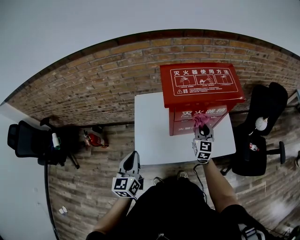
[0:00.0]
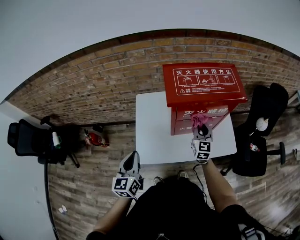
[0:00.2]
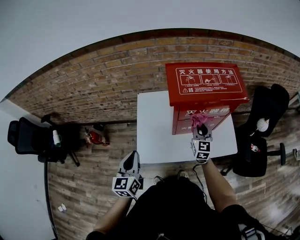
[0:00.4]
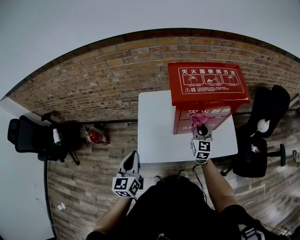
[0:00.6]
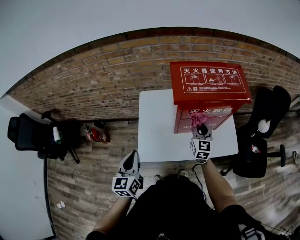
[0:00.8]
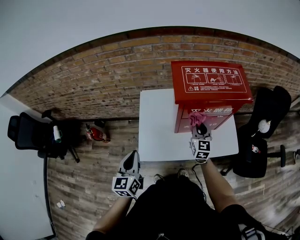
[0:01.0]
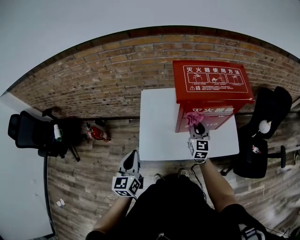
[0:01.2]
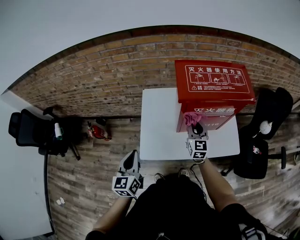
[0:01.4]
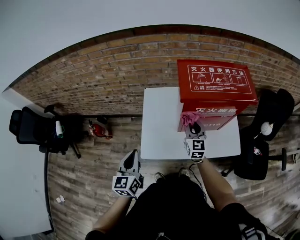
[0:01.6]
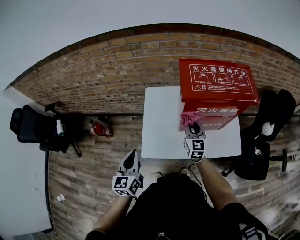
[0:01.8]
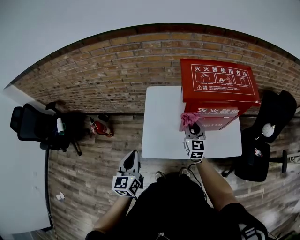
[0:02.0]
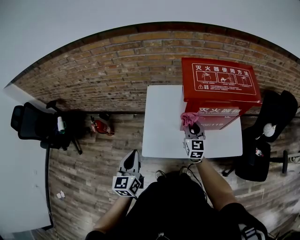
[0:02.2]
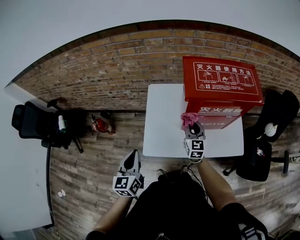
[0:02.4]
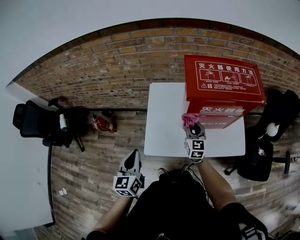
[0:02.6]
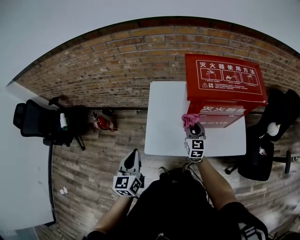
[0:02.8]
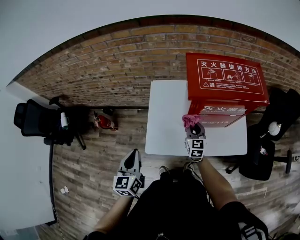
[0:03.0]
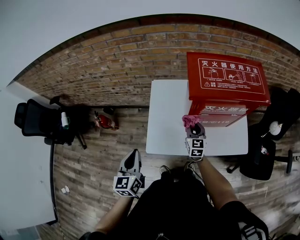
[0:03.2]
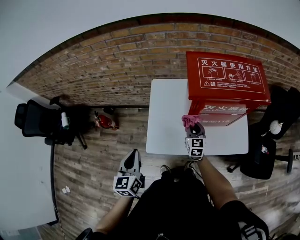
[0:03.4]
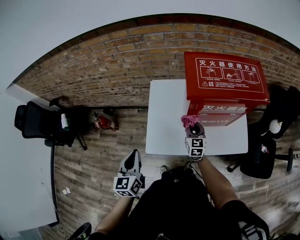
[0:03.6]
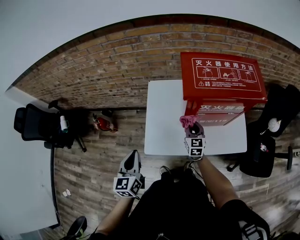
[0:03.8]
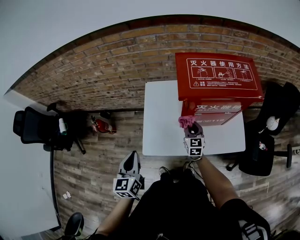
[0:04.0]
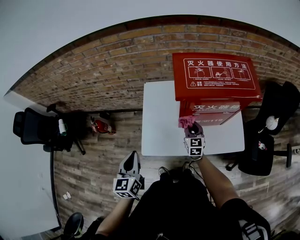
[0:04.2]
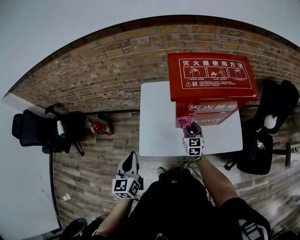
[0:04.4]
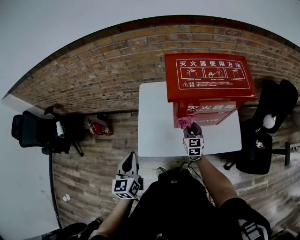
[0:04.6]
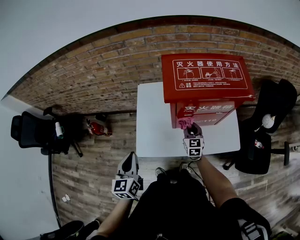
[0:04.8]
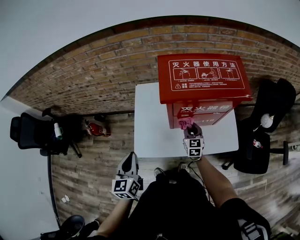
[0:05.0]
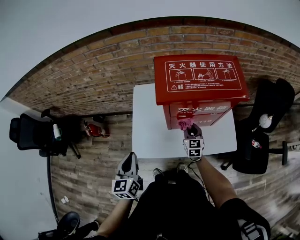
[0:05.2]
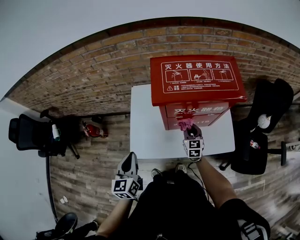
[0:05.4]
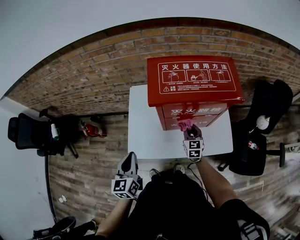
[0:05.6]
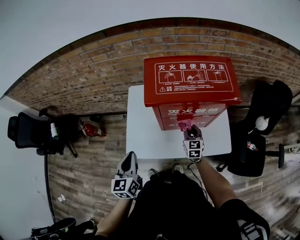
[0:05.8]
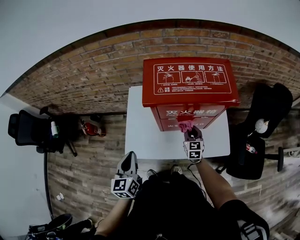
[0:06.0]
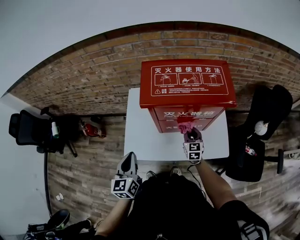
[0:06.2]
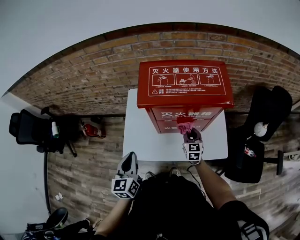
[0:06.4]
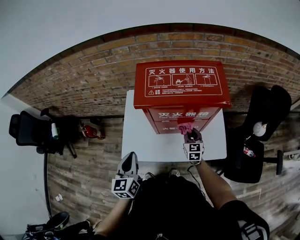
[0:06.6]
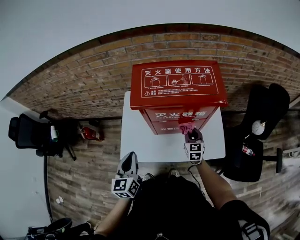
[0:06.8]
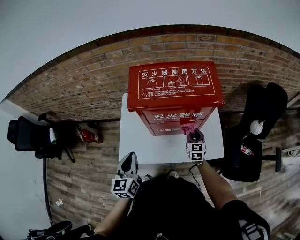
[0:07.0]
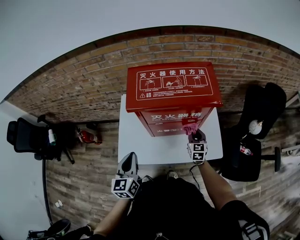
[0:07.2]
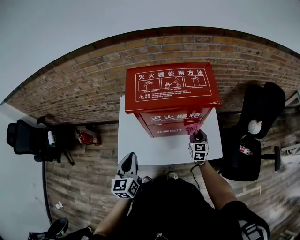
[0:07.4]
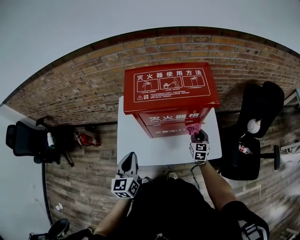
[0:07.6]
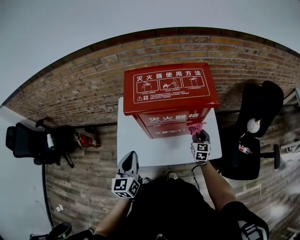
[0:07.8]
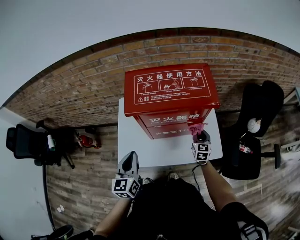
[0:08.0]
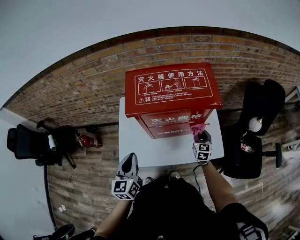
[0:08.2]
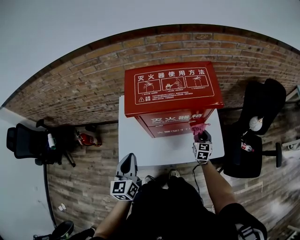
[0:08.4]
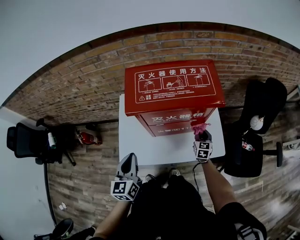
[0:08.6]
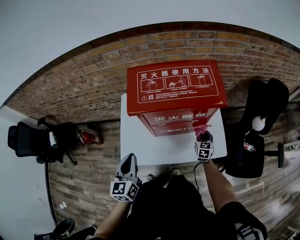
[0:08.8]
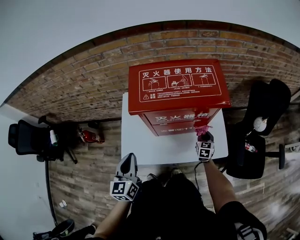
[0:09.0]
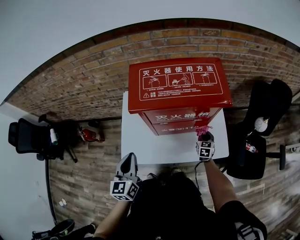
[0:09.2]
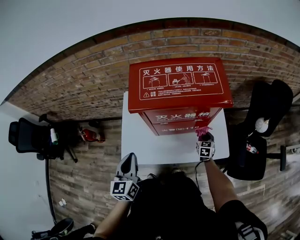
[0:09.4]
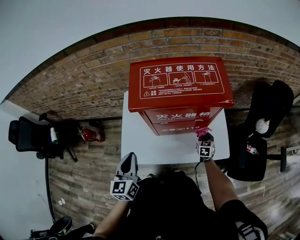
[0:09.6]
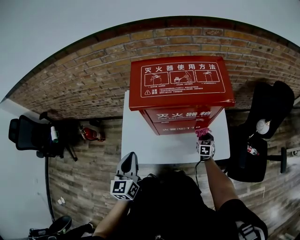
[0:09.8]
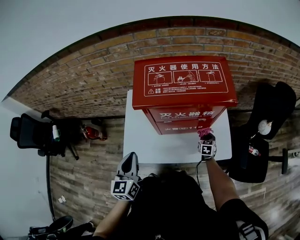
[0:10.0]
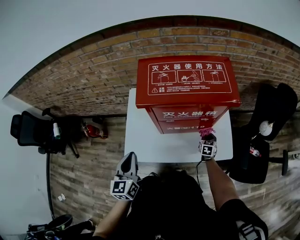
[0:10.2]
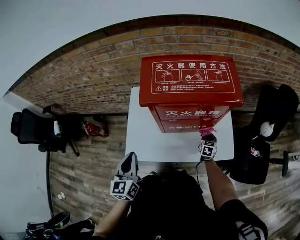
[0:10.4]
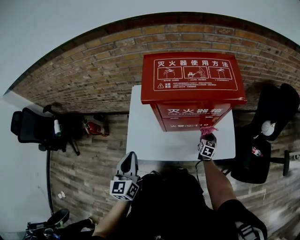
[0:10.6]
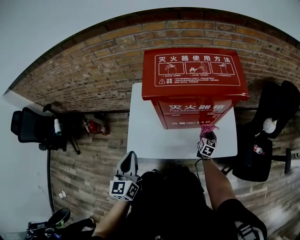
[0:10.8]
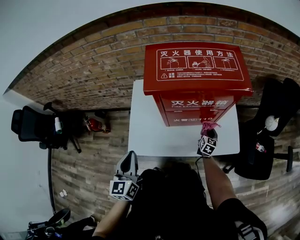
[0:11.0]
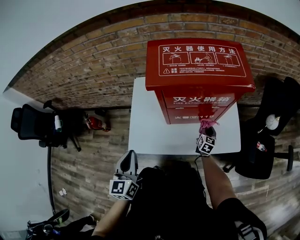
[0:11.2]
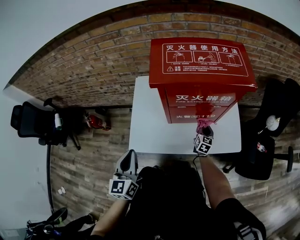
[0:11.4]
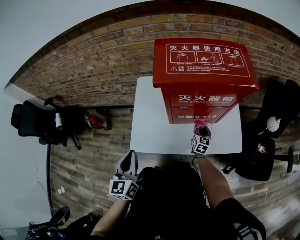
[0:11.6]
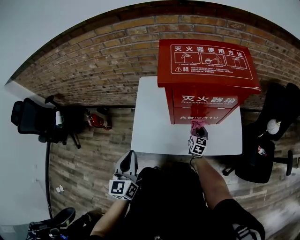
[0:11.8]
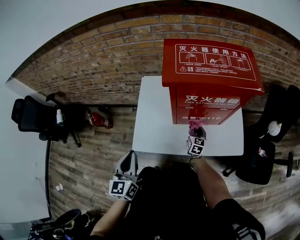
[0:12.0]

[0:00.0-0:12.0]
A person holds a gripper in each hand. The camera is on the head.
0:00.0 to 0:01.6: The left gripper shifts by some 5 cm, while the right gripper shifts roughly 10 cm to the left.
0:01.6 to 0:03.0: The right gripper goes roughly 10 cm downward.
0:03.0 to 0:04.4: There are only small adjustments of the grippers.
0:04.4 to 0:06.0: Both grippers travel together to the right, roughly 10 cm.
0:06.0 to 0:07.6: The right gripper moves to the right, roughly 15 cm. Meanwhile the left gripper moves to the right, approximately 5 cm.
0:07.6 to 0:09.0: The right gripper heads downward, covering about 10 cm.
0:09.0 to 0:10.4: The right gripper is displaced downward by some 5 cm.
0:10.4 to 0:12.0: The right gripper goes about 15 cm to the left. Meanwhile the left gripper heads backward and to the left, covering about 10 cm.

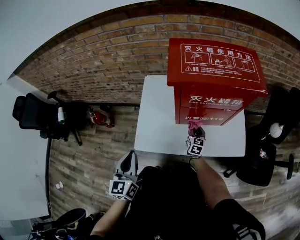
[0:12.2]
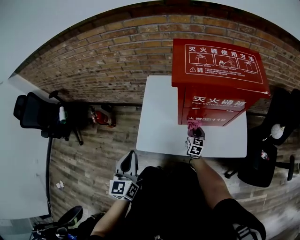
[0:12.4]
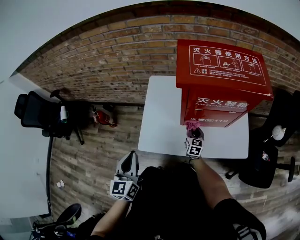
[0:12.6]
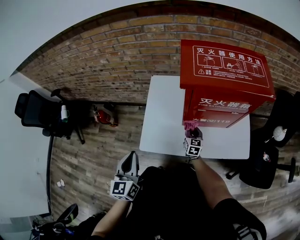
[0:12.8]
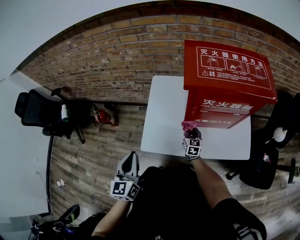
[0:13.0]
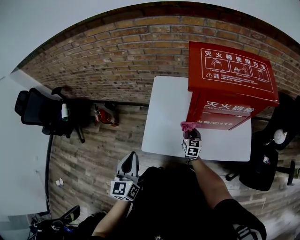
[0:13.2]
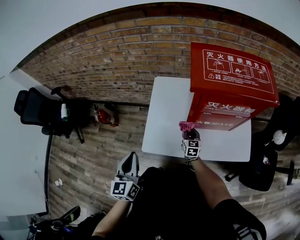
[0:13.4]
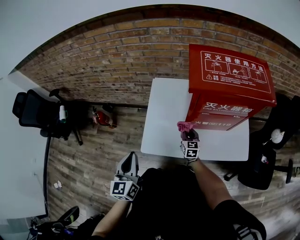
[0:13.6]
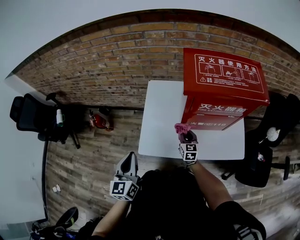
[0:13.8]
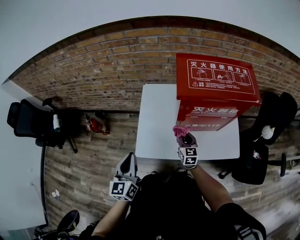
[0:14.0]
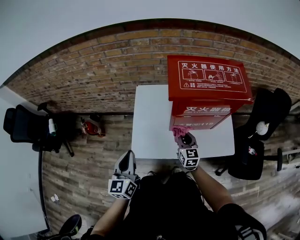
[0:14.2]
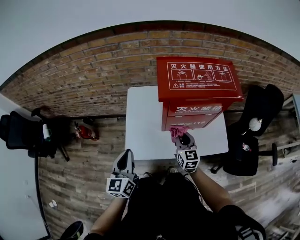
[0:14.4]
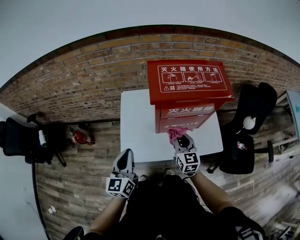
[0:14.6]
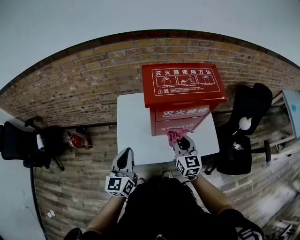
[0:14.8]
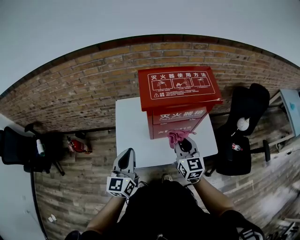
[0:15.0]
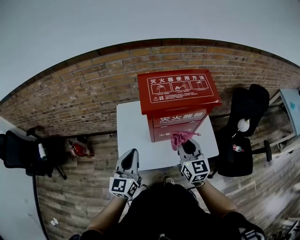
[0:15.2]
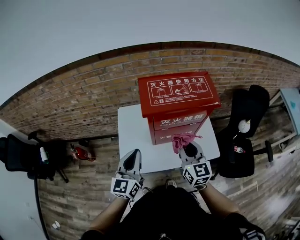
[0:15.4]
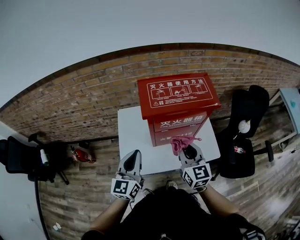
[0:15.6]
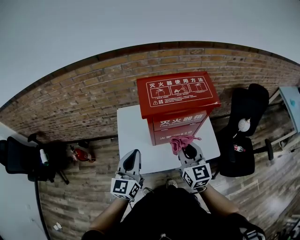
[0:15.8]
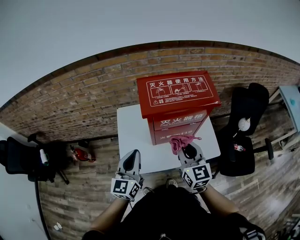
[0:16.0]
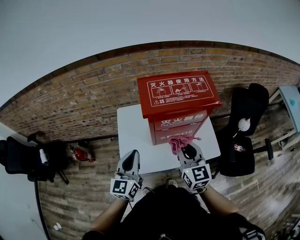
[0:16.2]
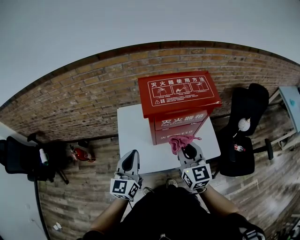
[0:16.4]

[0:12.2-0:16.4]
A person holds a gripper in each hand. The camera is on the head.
0:12.2 to 0:13.6: The right gripper moves to the left, approximately 10 cm; the left gripper shifts approximately 5 cm to the left.
0:13.6 to 0:15.0: The left gripper goes about 15 cm to the right, upward and forward, and swivels about 20 degrees. The right gripper goes roughly 30 cm upward.
0:15.0 to 0:16.4: The right gripper moves upward, about 5 cm.

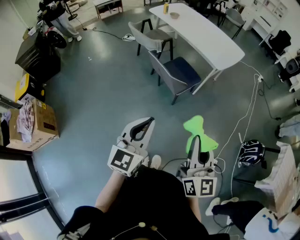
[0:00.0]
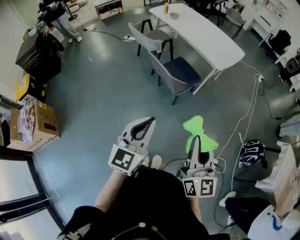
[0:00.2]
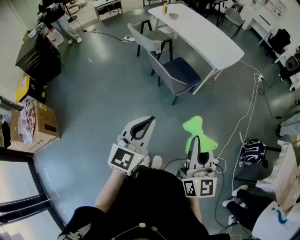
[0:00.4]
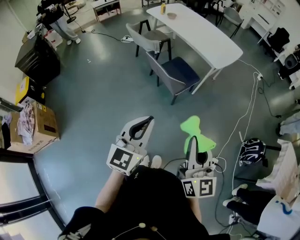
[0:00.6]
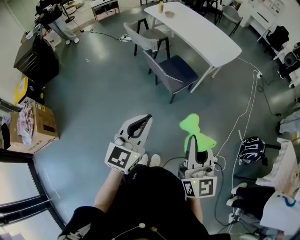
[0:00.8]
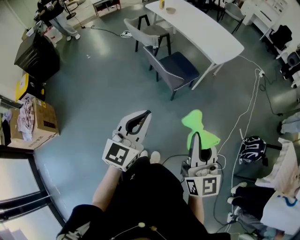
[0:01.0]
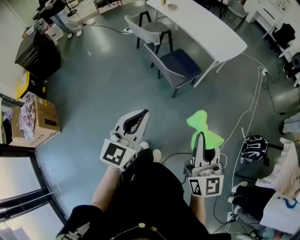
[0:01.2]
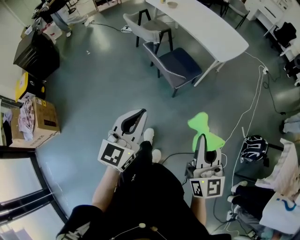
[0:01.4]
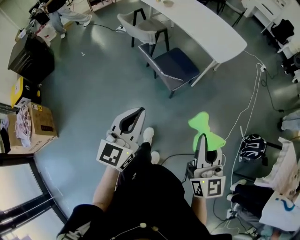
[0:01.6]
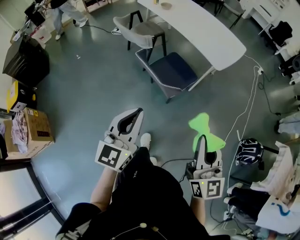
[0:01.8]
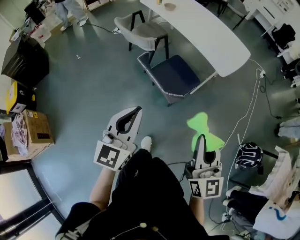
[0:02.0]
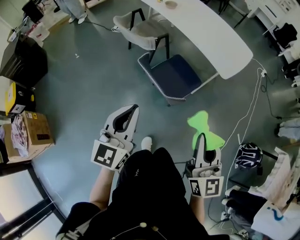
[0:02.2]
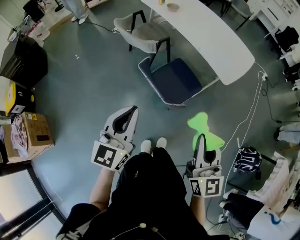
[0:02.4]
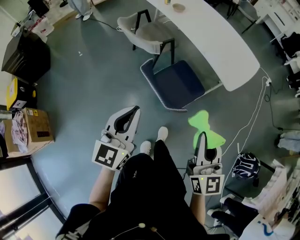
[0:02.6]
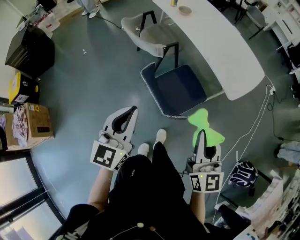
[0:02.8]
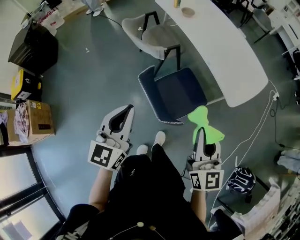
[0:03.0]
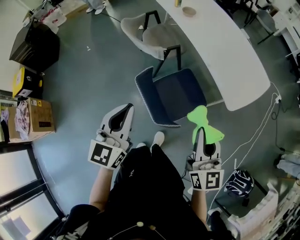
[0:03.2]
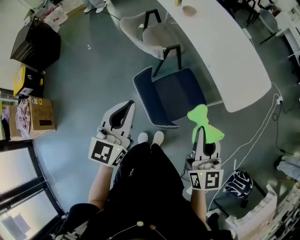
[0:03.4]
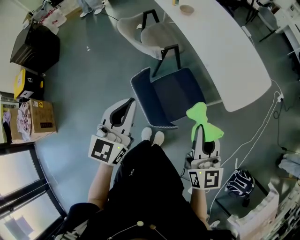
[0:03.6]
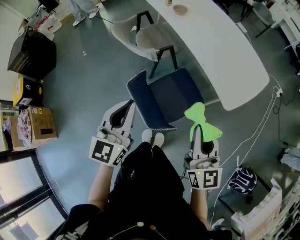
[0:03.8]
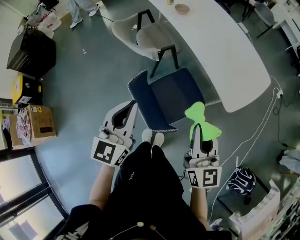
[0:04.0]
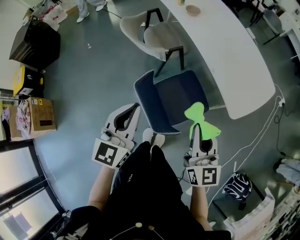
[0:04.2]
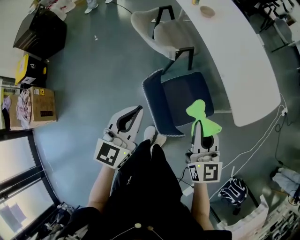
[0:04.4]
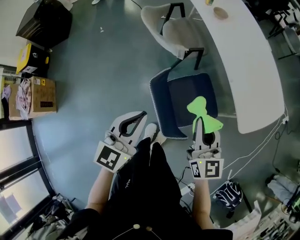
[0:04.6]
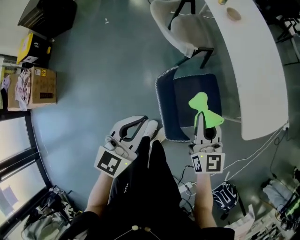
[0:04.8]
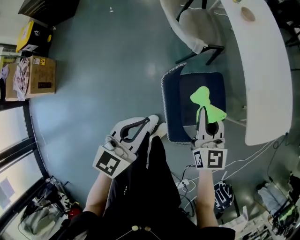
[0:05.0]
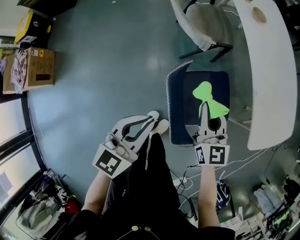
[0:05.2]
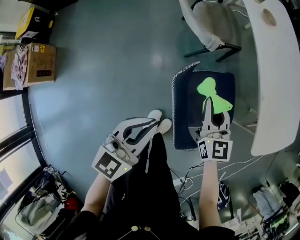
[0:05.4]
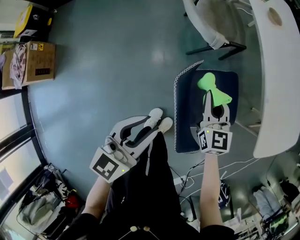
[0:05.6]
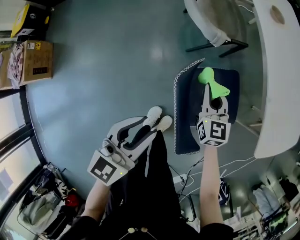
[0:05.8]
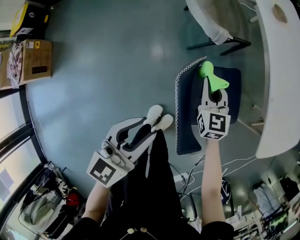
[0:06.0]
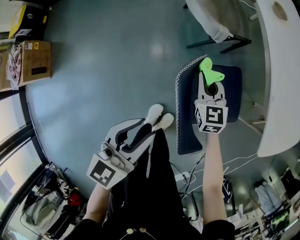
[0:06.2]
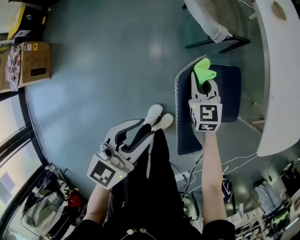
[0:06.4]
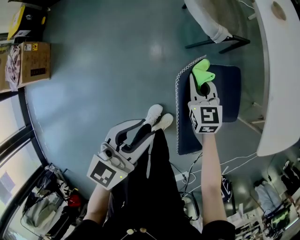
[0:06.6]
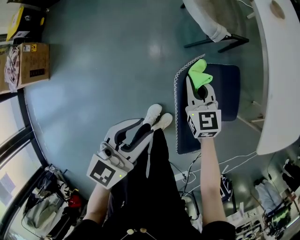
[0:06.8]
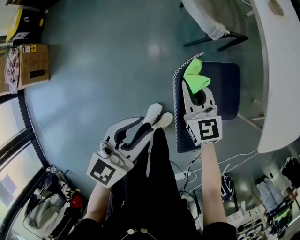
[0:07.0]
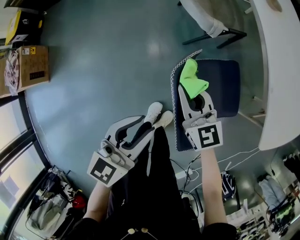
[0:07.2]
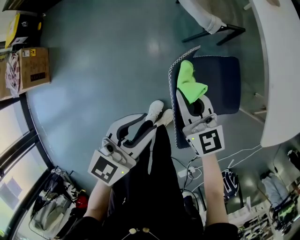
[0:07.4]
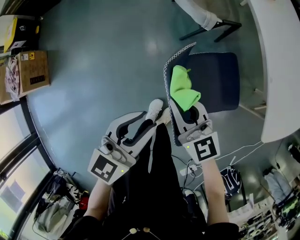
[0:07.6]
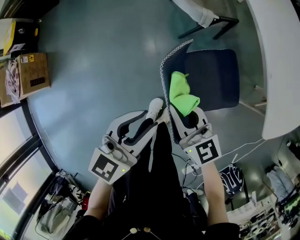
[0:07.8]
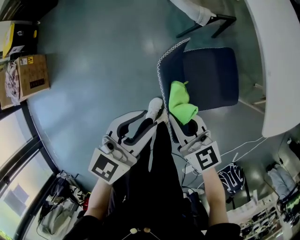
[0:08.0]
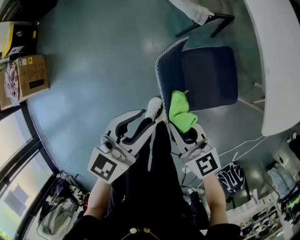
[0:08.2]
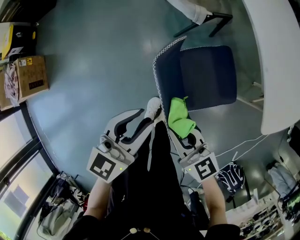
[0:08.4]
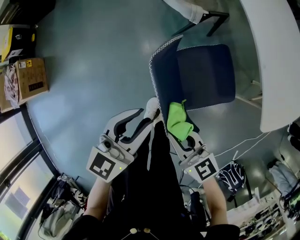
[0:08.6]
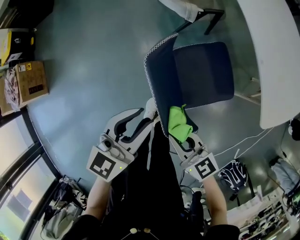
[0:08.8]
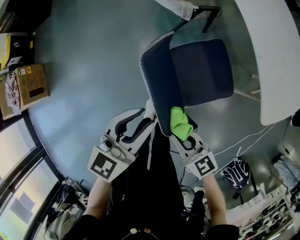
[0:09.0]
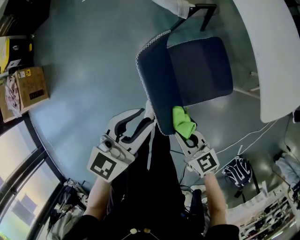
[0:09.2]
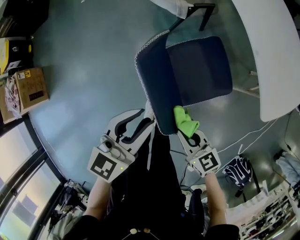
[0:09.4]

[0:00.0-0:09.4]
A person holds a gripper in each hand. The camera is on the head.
0:00.0 to 0:01.6: The grippers both shift forward by about 10 cm.
0:01.6 to 0:03.2: Both grippers move forward, roughly 35 cm.
0:03.2 to 0:04.8: The right gripper is displaced forward, downward and to the left by about 20 cm. The left gripper travels downward by some 10 cm.
0:04.8 to 0:06.2: The right gripper is displaced downward, forward and to the left by roughly 30 cm, and rotates some 20 degrees. The left gripper moves downward, about 10 cm, and opens its fingers.
0:06.2 to 0:07.8: The right gripper moves backward and upward, roughly 15 cm, and turns by approximately 30 degrees.
0:07.8 to 0:09.4: The right gripper is displaced backward, to the right and downward by approximately 20 cm; the left gripper changes place by about 5 cm.
